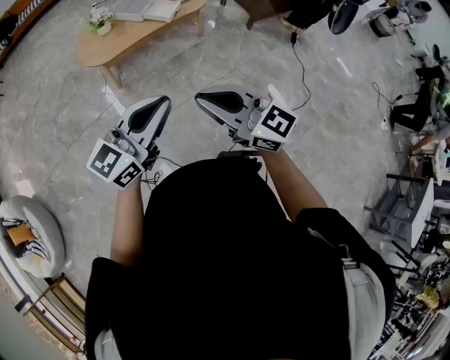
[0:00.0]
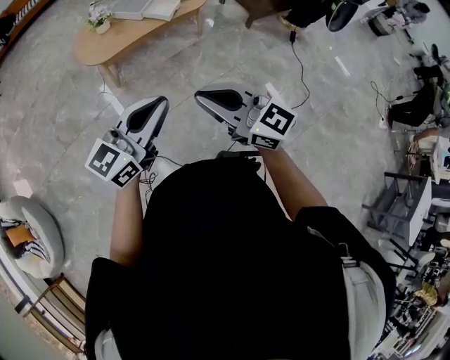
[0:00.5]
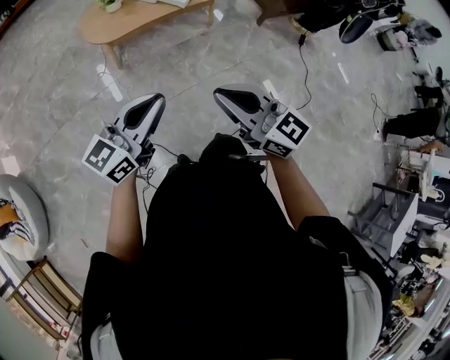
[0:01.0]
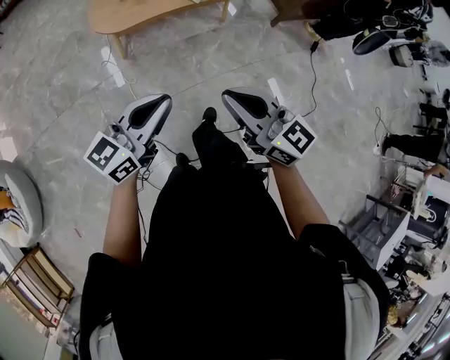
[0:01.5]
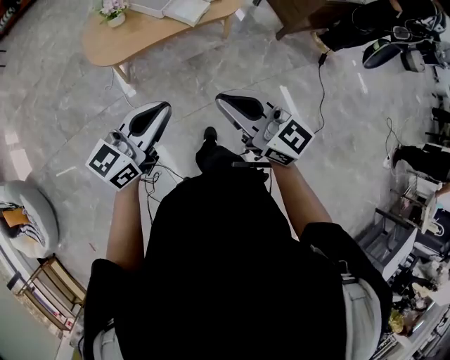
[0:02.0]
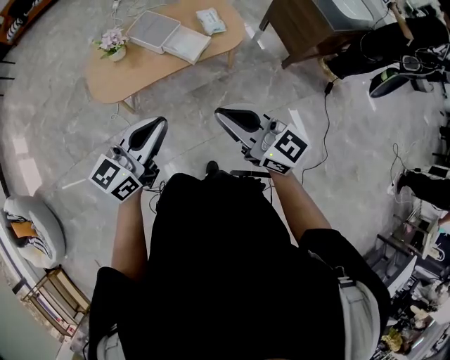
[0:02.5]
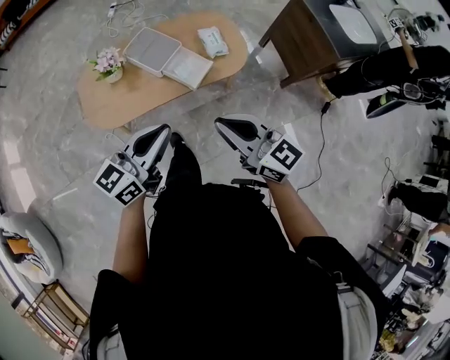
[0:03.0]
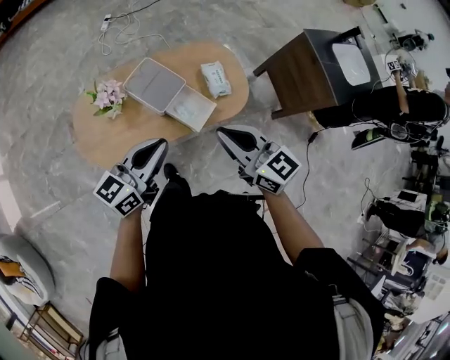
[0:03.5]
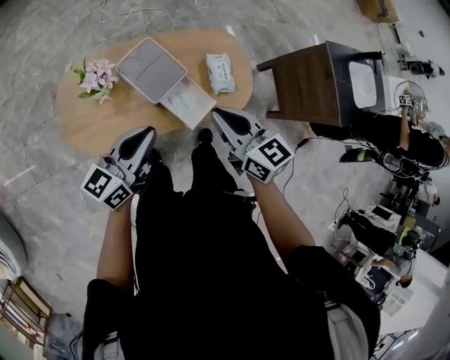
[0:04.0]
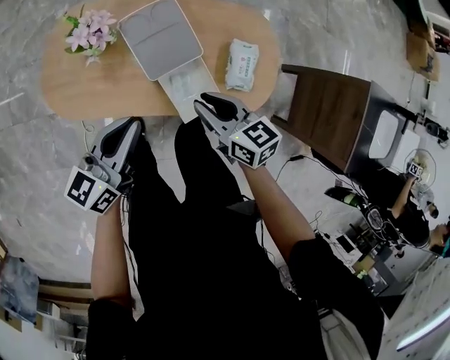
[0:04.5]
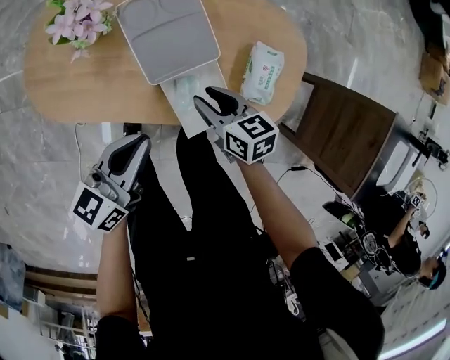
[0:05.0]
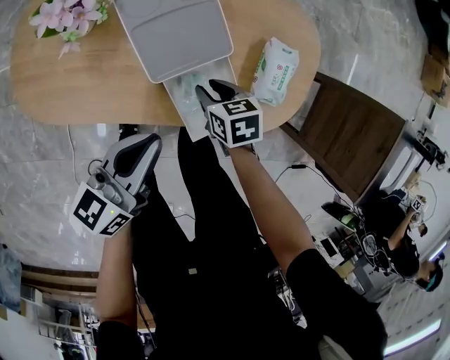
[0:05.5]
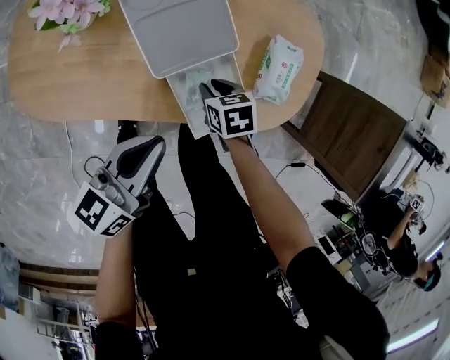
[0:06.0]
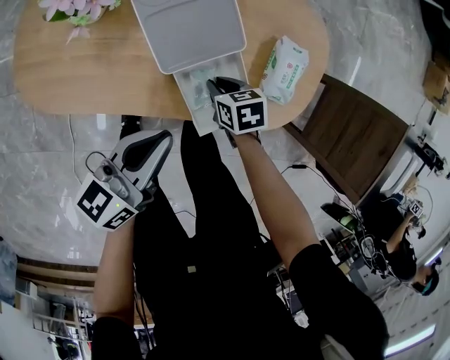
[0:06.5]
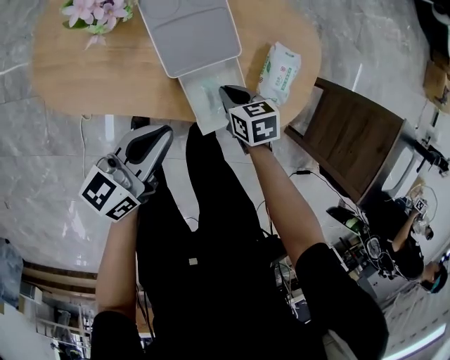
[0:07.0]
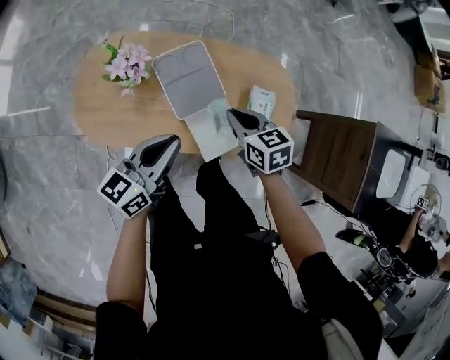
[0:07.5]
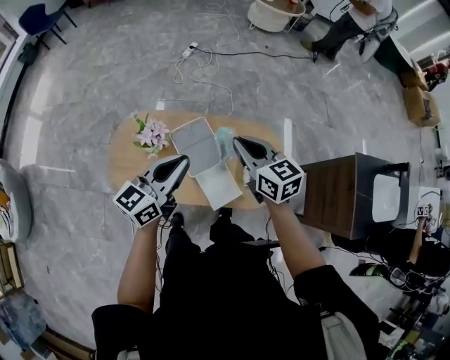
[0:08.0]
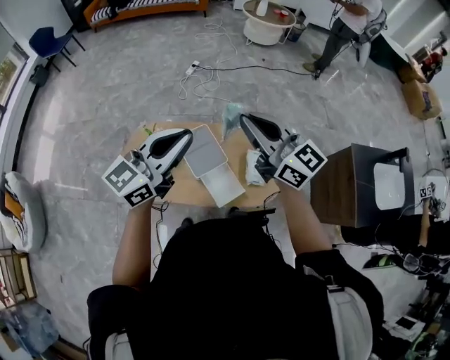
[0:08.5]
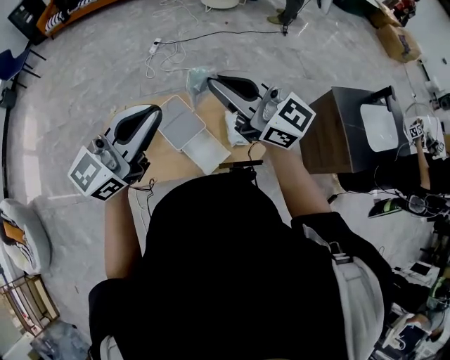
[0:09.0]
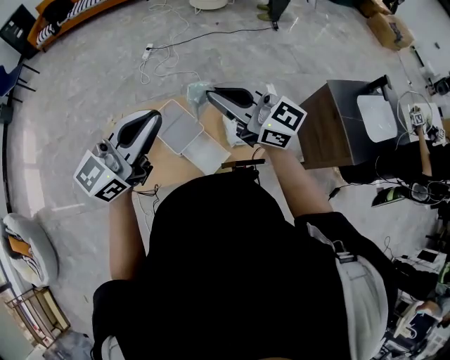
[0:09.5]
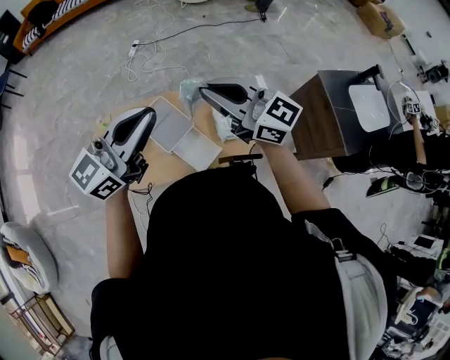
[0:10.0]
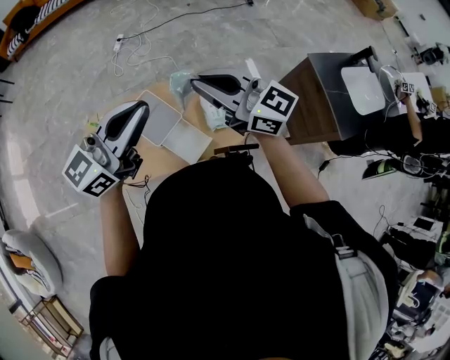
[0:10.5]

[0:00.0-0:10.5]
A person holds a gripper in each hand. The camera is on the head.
0:00.0 to 0:02.0: The grippers both shift forward by approximately 25 cm.
0:02.0 to 0:04.0: Both grippers are carried forward, about 60 cm. The left gripper rotates about 20 degrees; the right gripper swivels some 20 degrees.
0:04.0 to 0:06.5: The left gripper is displaced downward by approximately 25 cm, and rotates roughly 20 degrees. Meanwhile the right gripper travels downward by some 50 cm, and points its fingers approximately 50 degrees further downward.
0:06.5 to 0:08.5: The grippers both shift upward by some 60 cm. The right gripper angles its fingers upward, by roughly 70 degrees, while the left gripper turns by approximately 40 degrees.
0:08.5 to 0:10.5: The right gripper ends up about 5 cm from where it was; the left gripper heads to the right, covering some 5 cm.

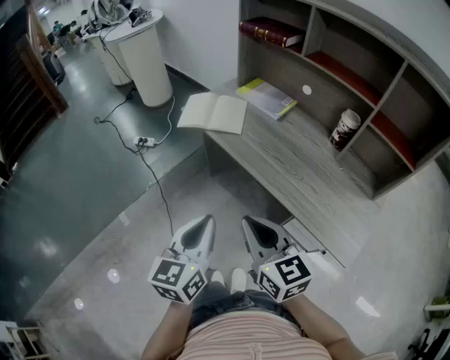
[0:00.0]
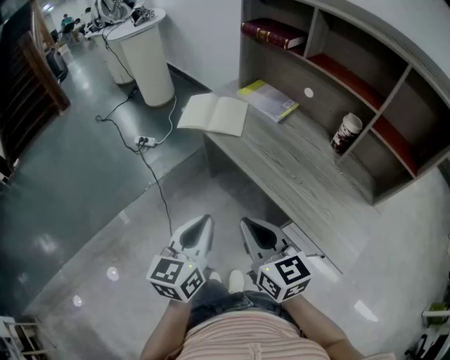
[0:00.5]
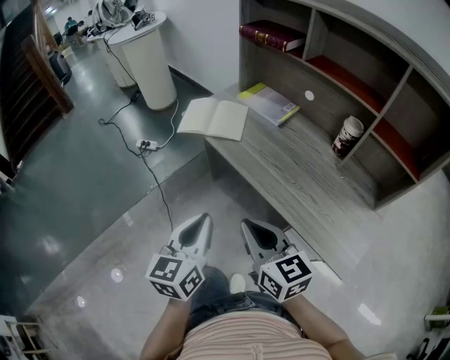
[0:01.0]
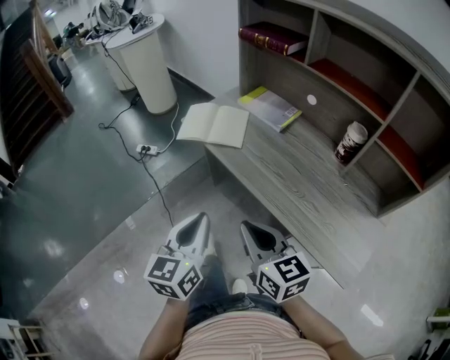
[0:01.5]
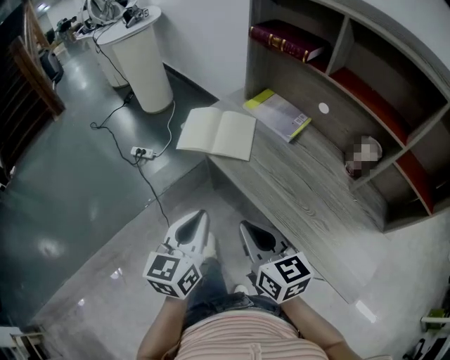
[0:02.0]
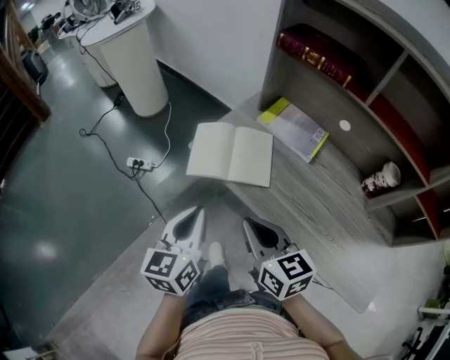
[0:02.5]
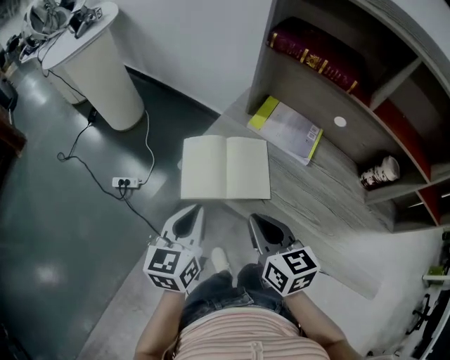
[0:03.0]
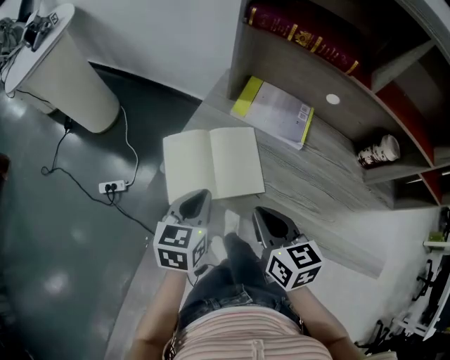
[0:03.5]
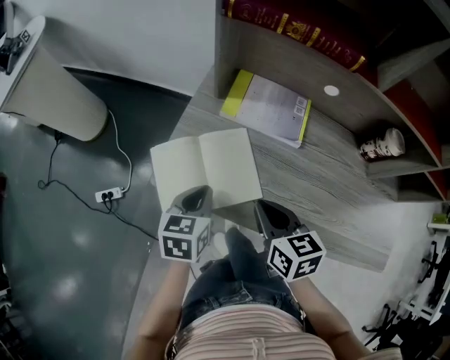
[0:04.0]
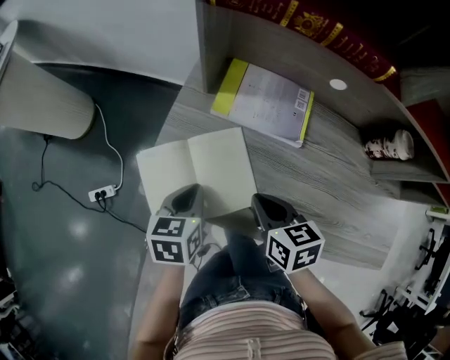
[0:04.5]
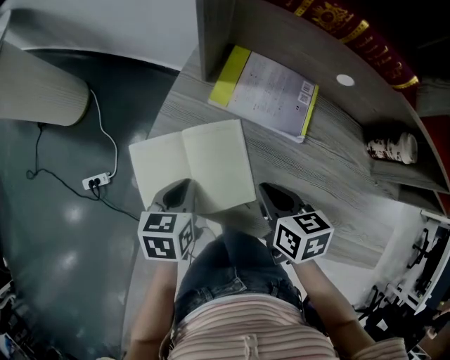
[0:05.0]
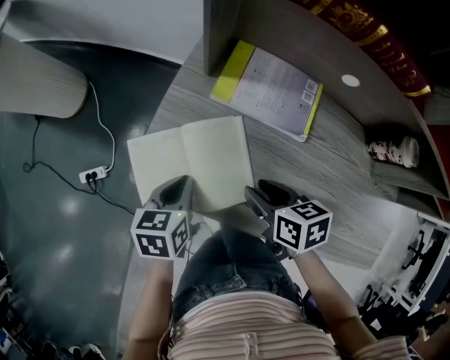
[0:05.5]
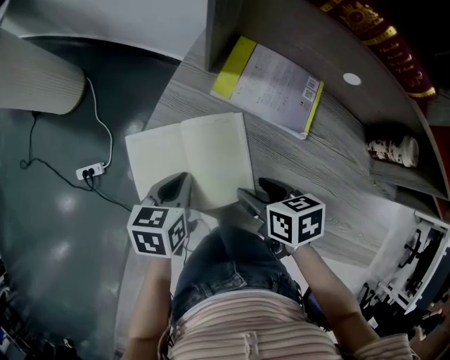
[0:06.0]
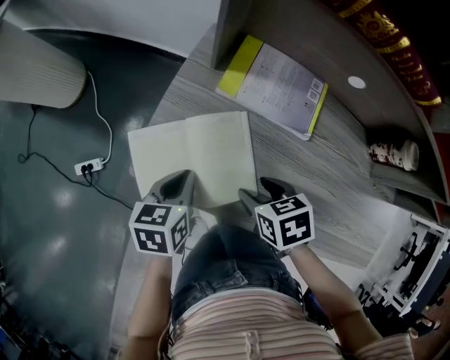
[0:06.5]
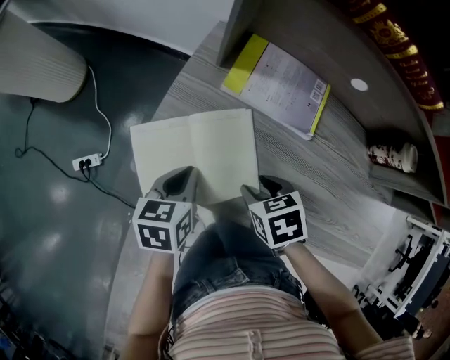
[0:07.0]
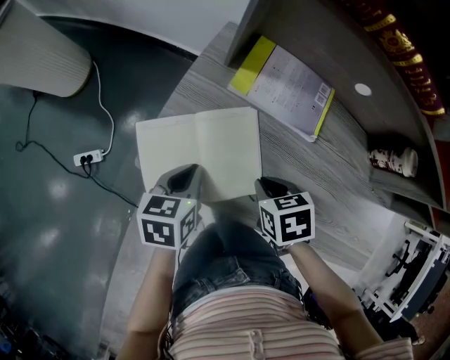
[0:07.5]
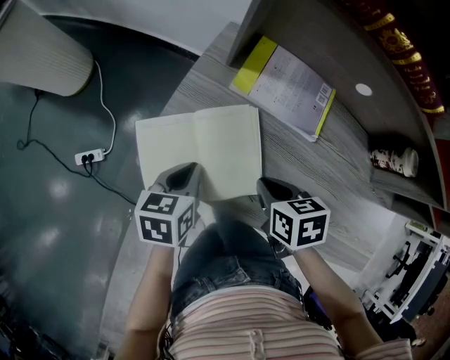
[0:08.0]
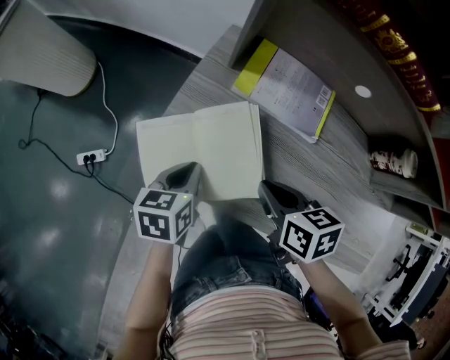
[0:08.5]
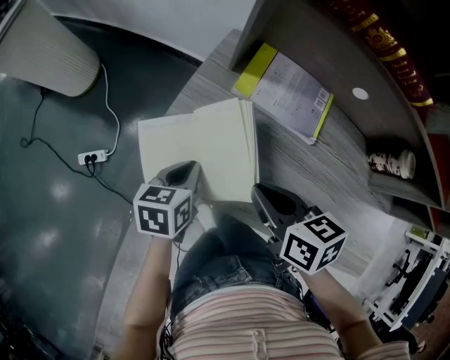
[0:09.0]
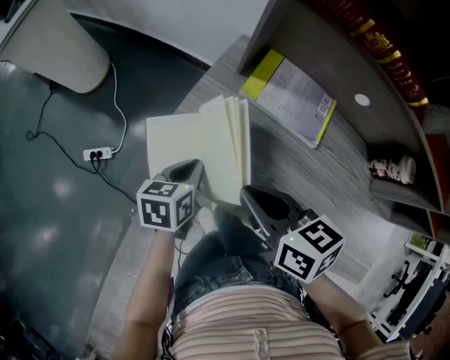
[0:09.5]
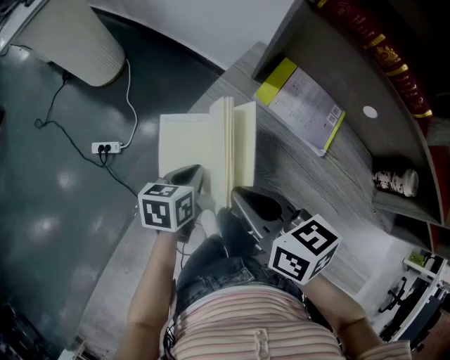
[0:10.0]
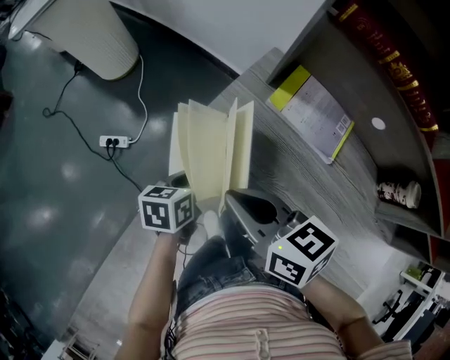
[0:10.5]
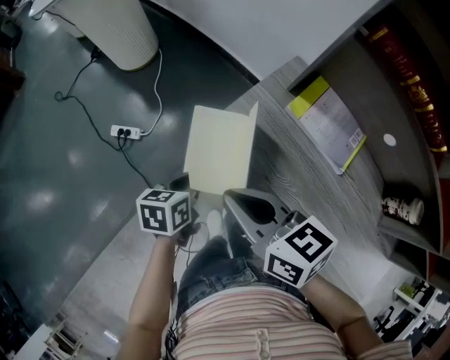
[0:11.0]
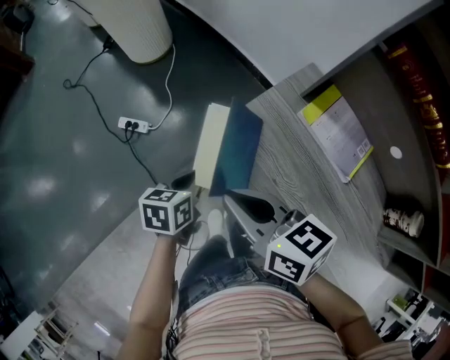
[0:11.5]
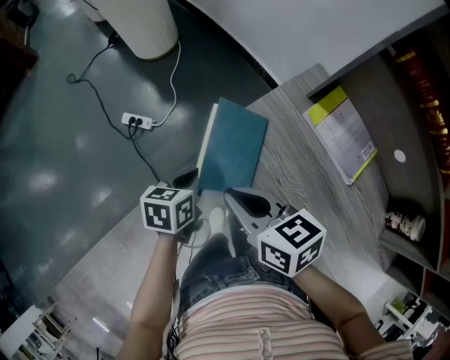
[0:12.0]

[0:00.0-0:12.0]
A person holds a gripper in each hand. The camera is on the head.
0:00.0 to 0:02.0: The two grippers go roughly 15 cm forward.
0:02.0 to 0:04.0: The right gripper ends up some 30 cm from where it was, and swivels roughly 40 degrees. Meanwhile the left gripper changes place by roughly 35 cm, and turns by roughly 40 degrees.
0:04.0 to 0:06.0: The right gripper heads downward, covering some 10 cm, rotates some 30 degrees, and opens its fingers. The left gripper ends up some 5 cm from where it was.
0:06.0 to 0:08.0: The right gripper closes up.
0:08.0 to 0:10.0: The right gripper goes roughly 15 cm upward and to the left, and tips its fingers upward by roughly 30 degrees.
0:10.0 to 0:12.0: The grippers both shift to the left by some 10 cm.

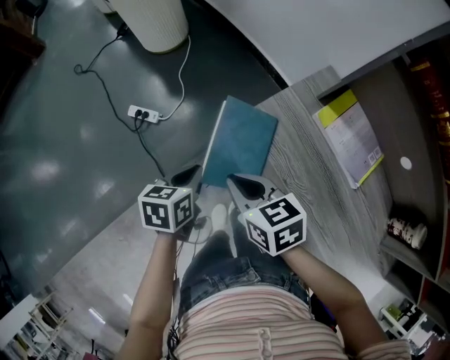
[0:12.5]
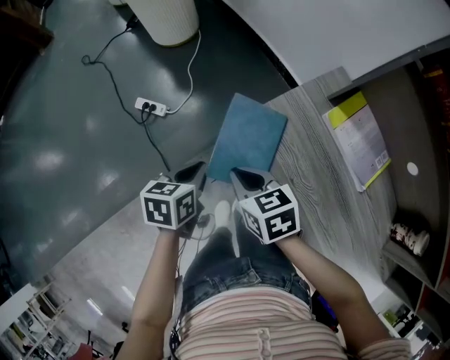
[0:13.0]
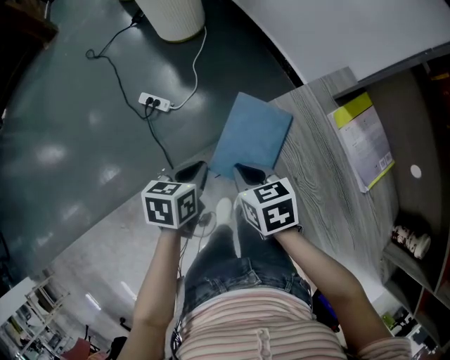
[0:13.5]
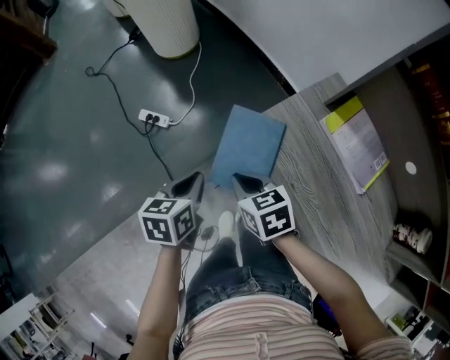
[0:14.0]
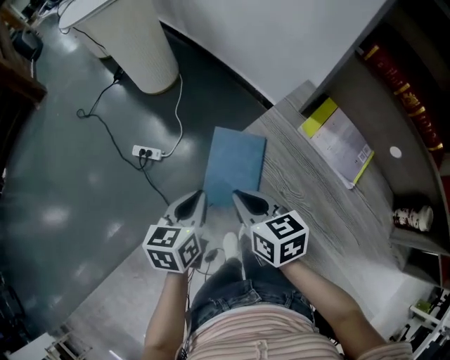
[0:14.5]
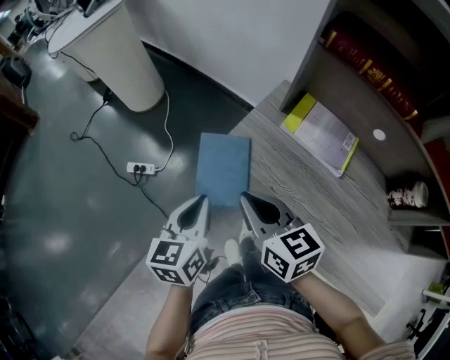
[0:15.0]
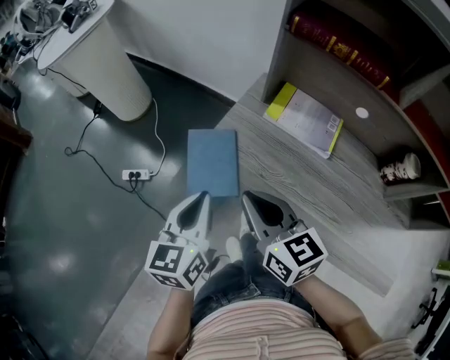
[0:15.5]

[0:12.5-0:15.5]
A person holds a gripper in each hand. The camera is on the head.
0:12.5 to 0:14.0: The right gripper is displaced downward by about 5 cm.
0:14.0 to 0:15.5: Both grippers travel together upward and to the right, some 20 cm. The left gripper swivels roughly 30 degrees; the right gripper rotates roughly 40 degrees.

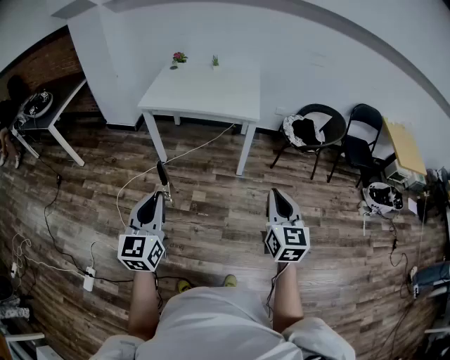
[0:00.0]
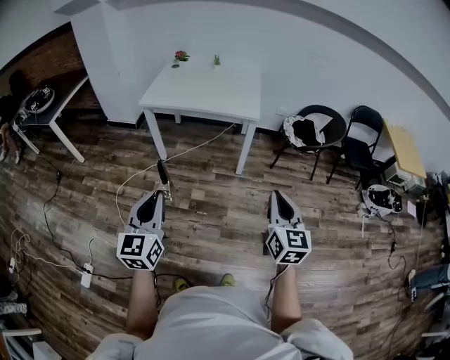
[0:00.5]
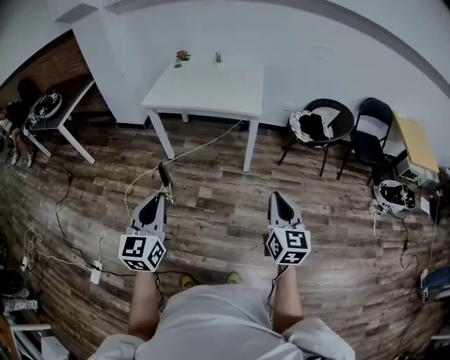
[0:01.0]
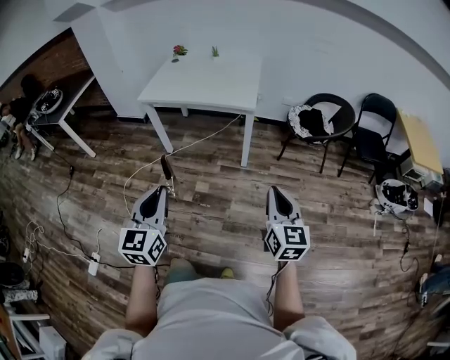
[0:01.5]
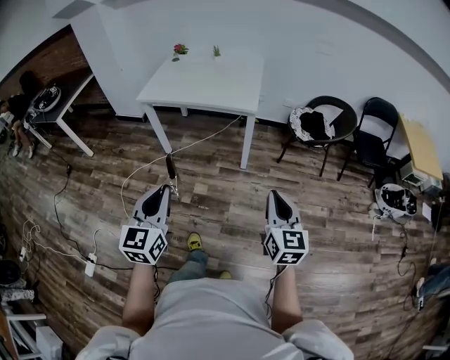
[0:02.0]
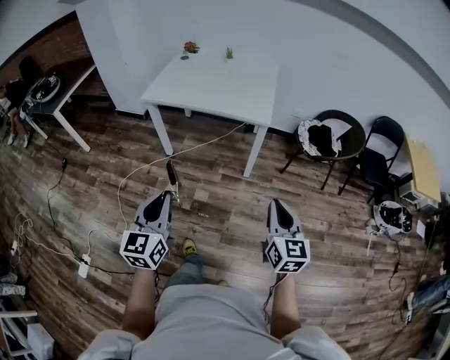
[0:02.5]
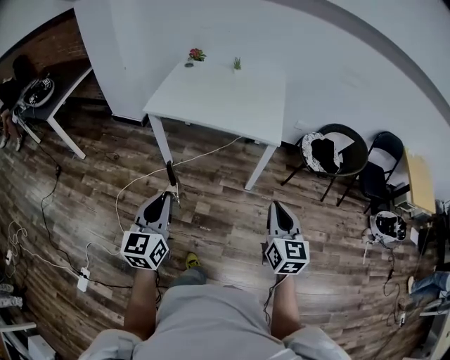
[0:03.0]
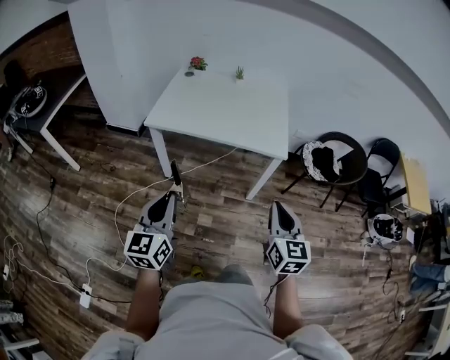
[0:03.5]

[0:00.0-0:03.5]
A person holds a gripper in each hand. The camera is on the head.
0:00.0 to 0:02.0: Both grippers move to the right, about 10 cm.
0:02.0 to 0:03.5: Both grippers move forward and to the left, approximately 35 cm.
